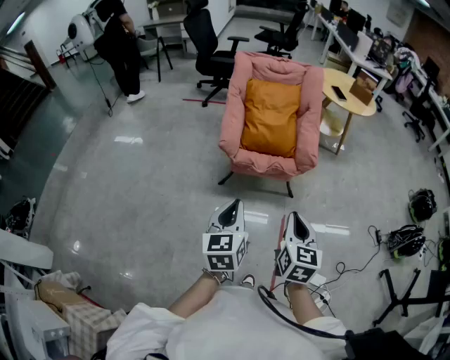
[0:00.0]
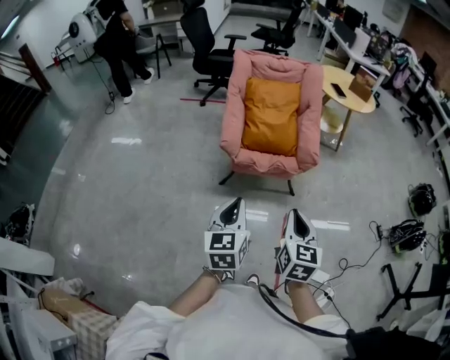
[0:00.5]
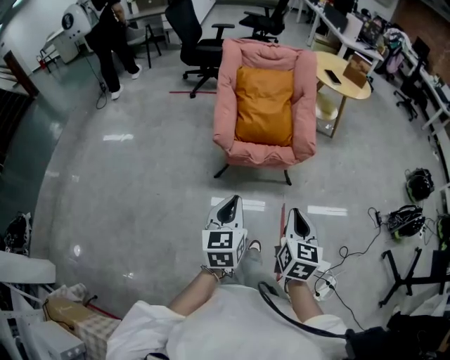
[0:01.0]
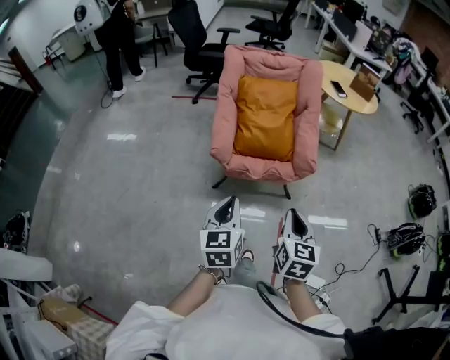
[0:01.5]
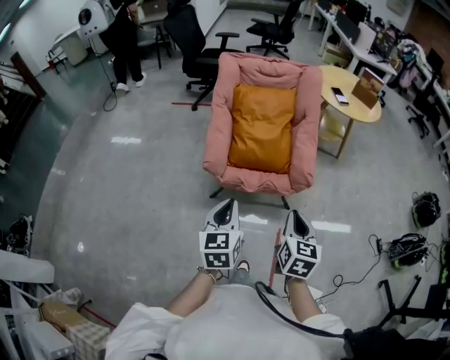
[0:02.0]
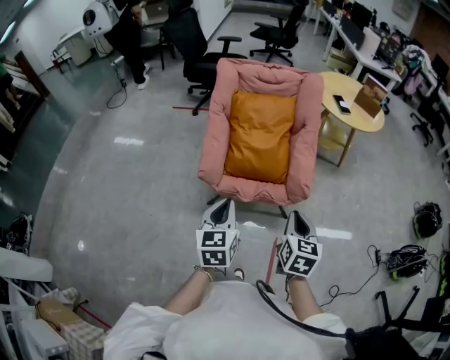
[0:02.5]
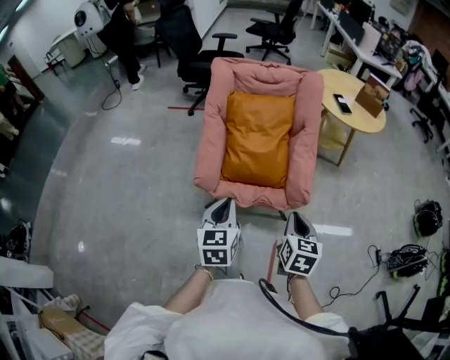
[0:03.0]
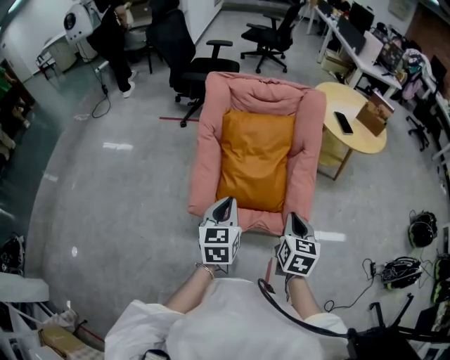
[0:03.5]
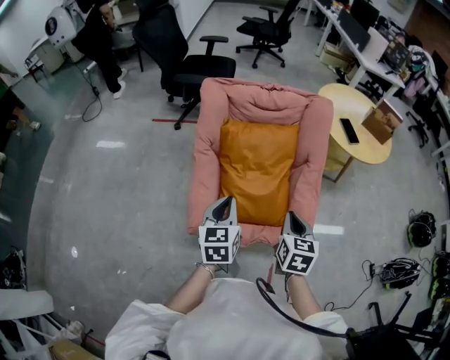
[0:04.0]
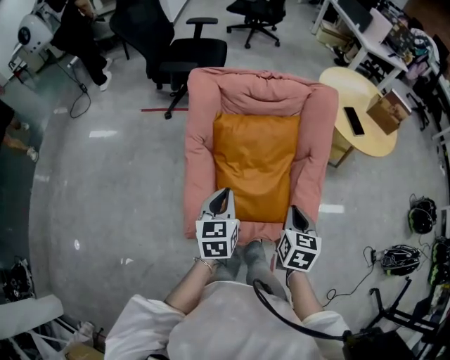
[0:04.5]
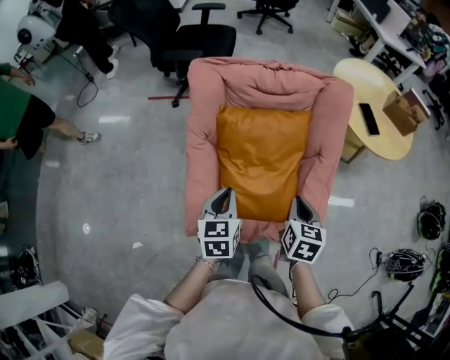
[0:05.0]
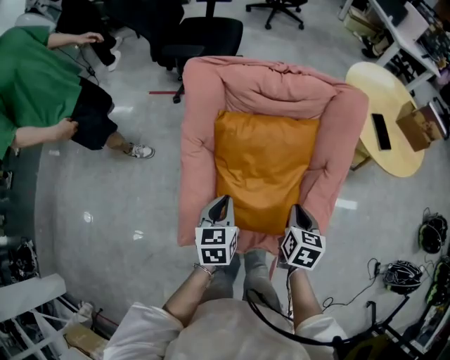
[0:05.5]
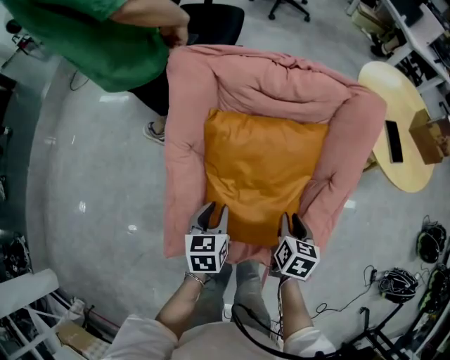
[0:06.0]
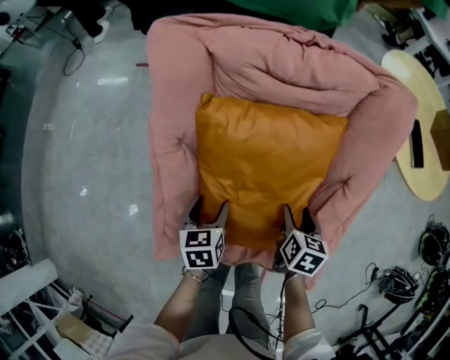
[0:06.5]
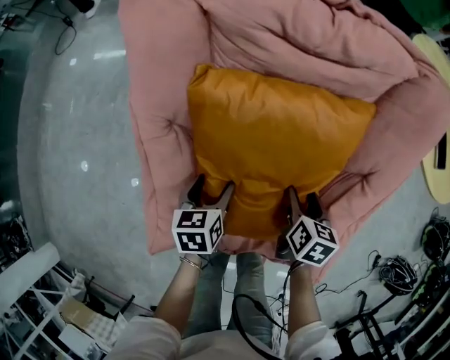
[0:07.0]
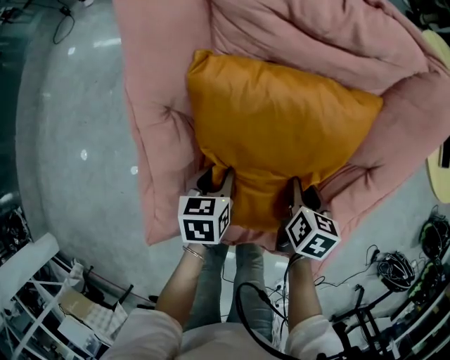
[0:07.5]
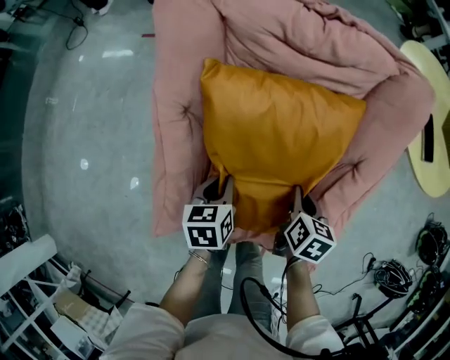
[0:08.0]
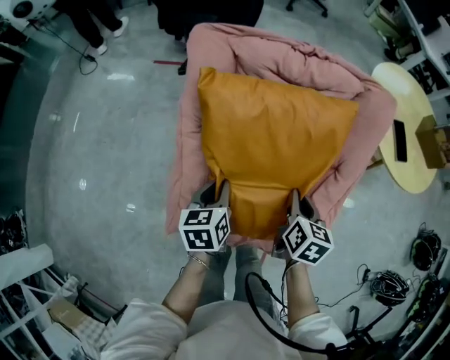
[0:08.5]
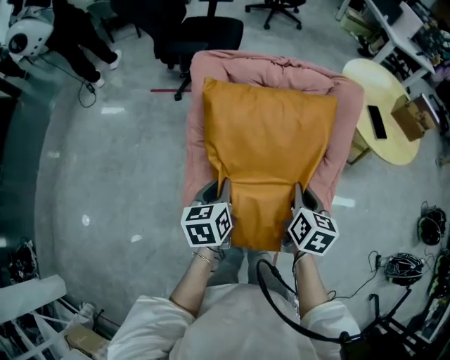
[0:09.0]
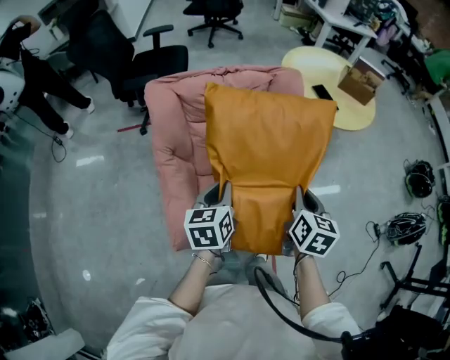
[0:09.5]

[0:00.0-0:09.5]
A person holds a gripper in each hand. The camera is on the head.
0:00.0 to 0:02.0: The grippers both shift forward by roughly 20 cm.
0:02.0 to 0:04.0: The two grippers go approximately 35 cm forward.
0:04.0 to 0:05.5: The grippers both shift forward and downward by approximately 20 cm.
0:05.5 to 0:07.5: The two grippers go some 20 cm downward. The left gripper opens its fingers. The right gripper opens up.
0:07.5 to 0:09.5: The left gripper heads upward, covering roughly 30 cm, and swivels approximately 30 degrees. The right gripper goes approximately 35 cm upward and backward, rotates approximately 30 degrees, and closes.

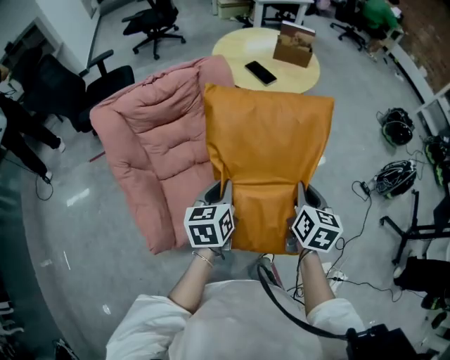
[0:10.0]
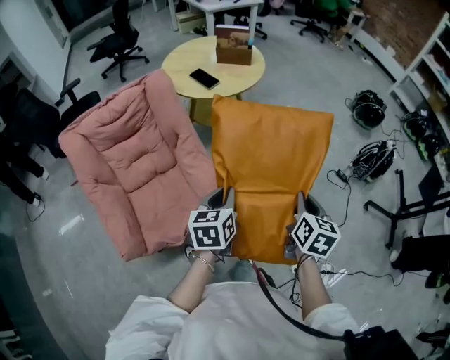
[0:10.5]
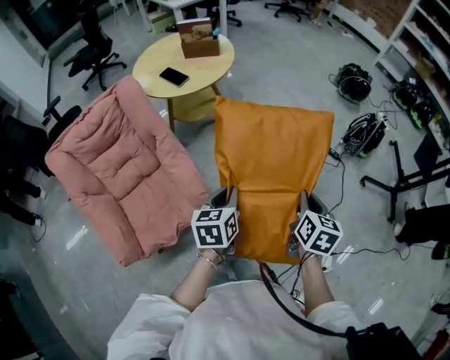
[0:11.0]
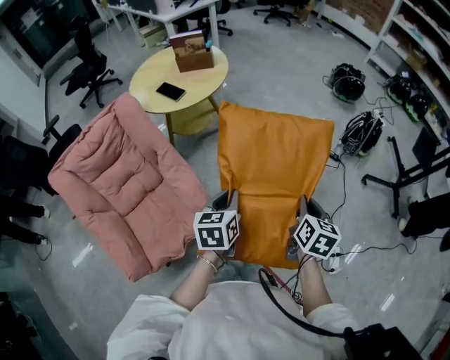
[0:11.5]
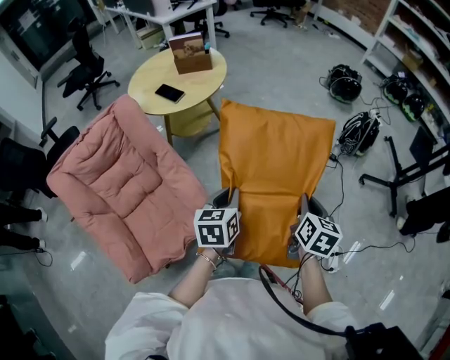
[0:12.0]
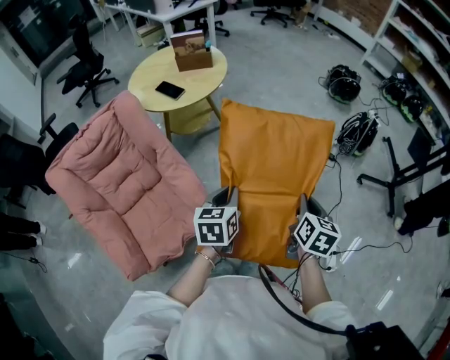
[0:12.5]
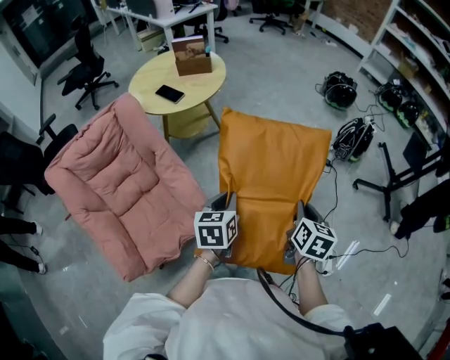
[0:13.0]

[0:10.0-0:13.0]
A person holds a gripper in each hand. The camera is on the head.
0:10.0 to 0:11.5: Both grippers travel together to the right, about 30 cm. The right gripper swivels approximately 20 degrees, while the left gripper changes its angle by some 20 degrees.
0:11.5 to 0:13.0: The grippers move only a little.

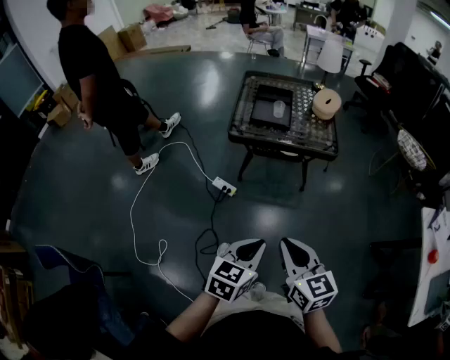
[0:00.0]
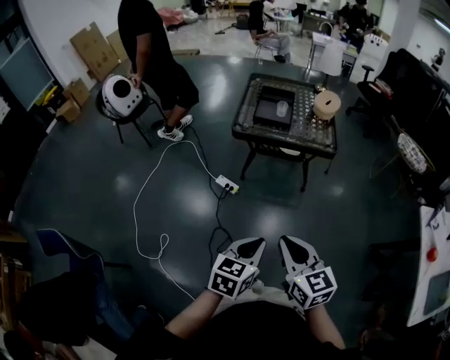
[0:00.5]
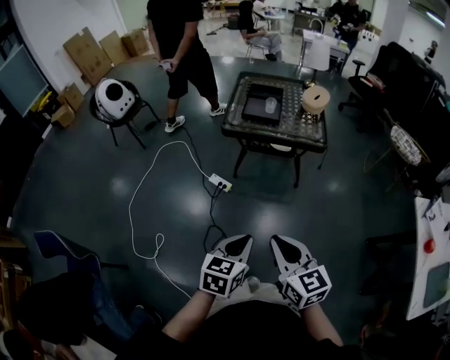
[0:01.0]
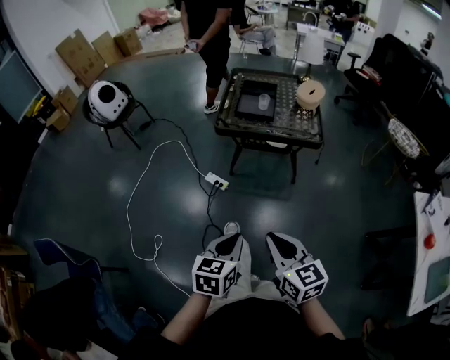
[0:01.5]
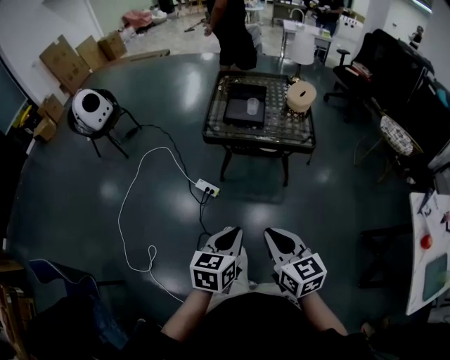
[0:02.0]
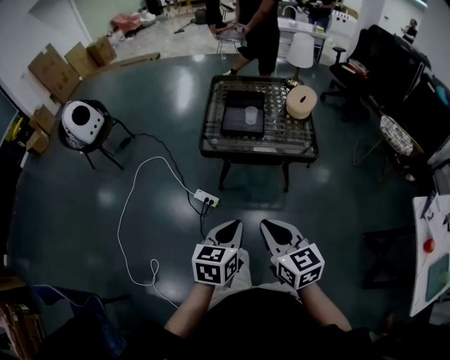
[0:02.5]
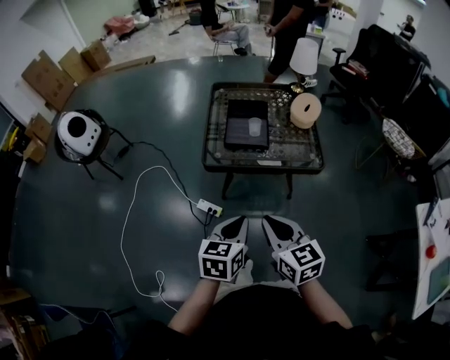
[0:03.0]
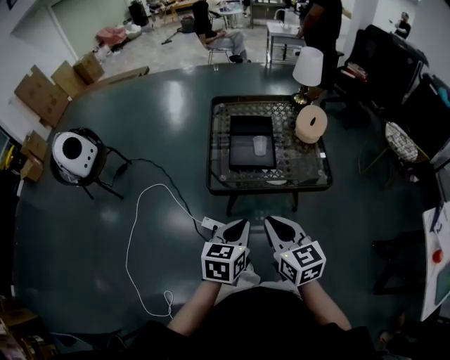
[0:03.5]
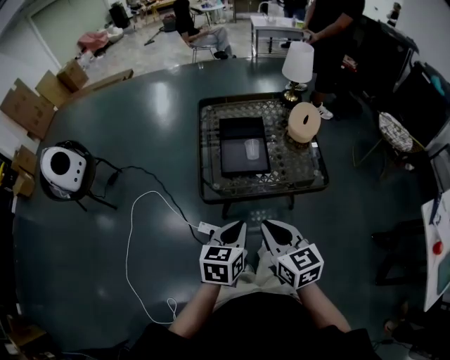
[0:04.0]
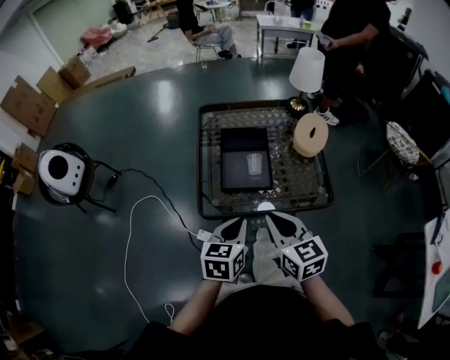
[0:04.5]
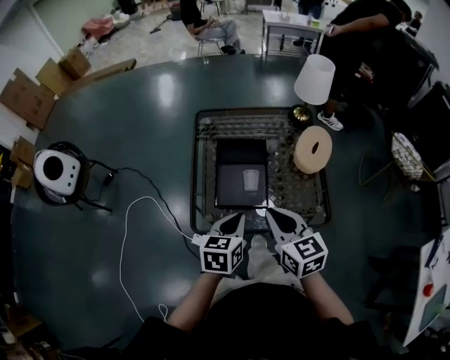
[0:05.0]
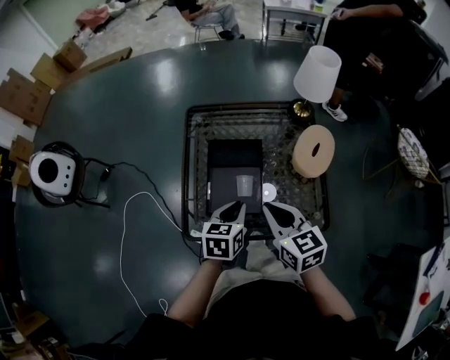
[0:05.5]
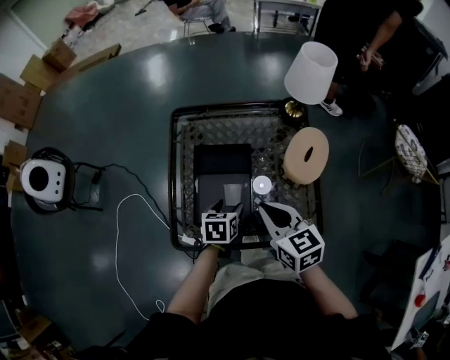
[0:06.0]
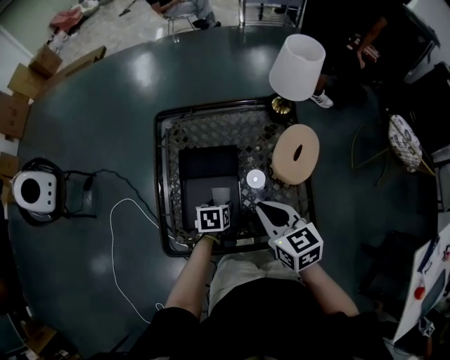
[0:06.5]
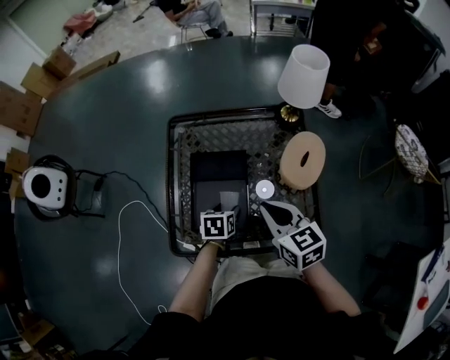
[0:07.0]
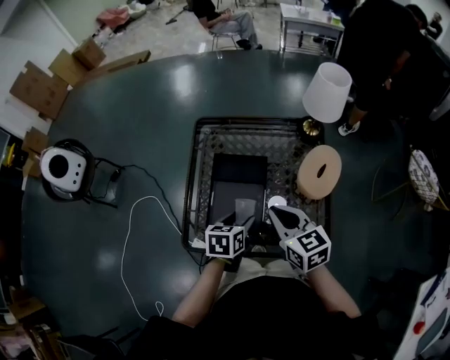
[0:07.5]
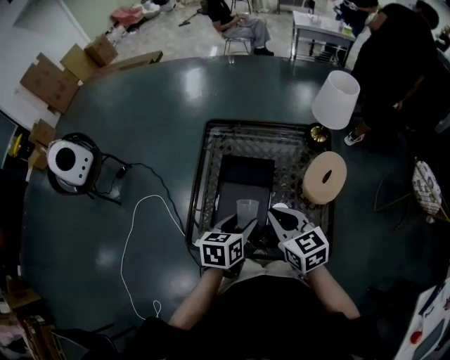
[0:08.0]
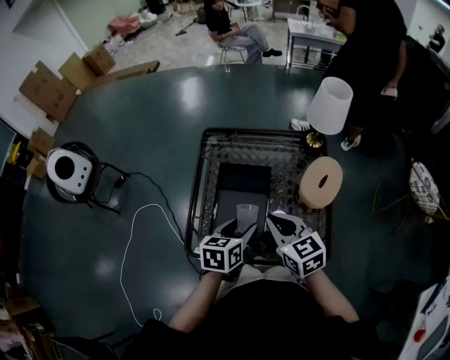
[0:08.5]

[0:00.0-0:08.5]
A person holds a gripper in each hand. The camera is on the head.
0:00.0 to 0:02.0: The right gripper goes backward and returns, some 10 cm each way; the left gripper goes backward and returns, approximately 5 cm each way.
0:02.0 to 0:04.0: Both grippers move forward, about 35 cm.
0:04.0 to 0:06.5: The left gripper moves forward and downward, some 40 cm, rotates roughly 30 degrees, and opens up. Meanwhile the right gripper heads forward and to the right, covering roughly 35 cm.
0:06.5 to 0:08.5: The right gripper ends up approximately 5 cm from where it was. The left gripper heads upward, covering roughly 15 cm, and turns by roughly 20 degrees.

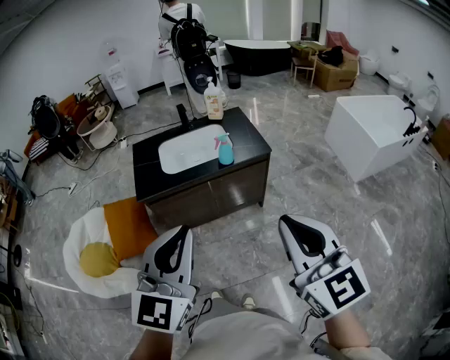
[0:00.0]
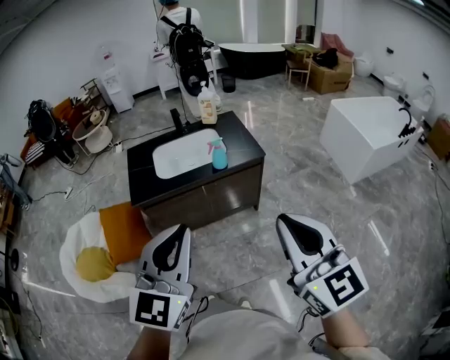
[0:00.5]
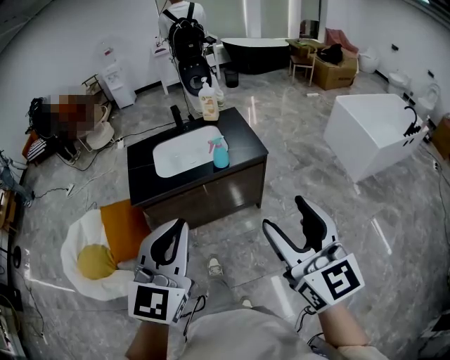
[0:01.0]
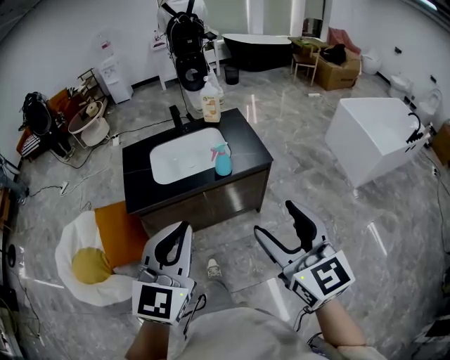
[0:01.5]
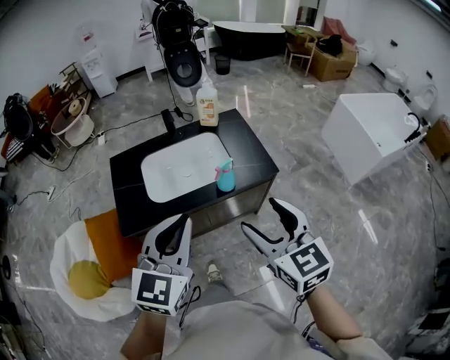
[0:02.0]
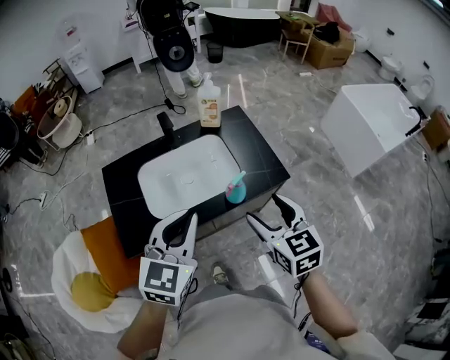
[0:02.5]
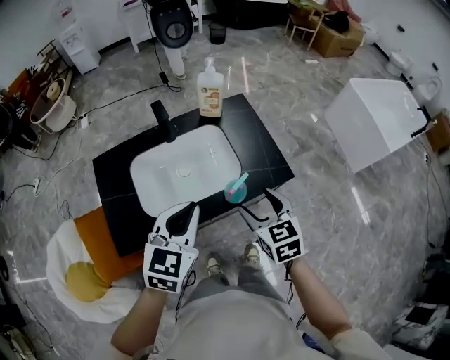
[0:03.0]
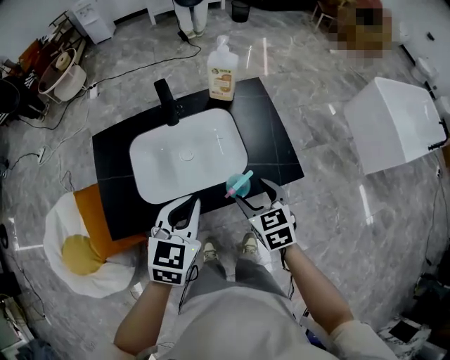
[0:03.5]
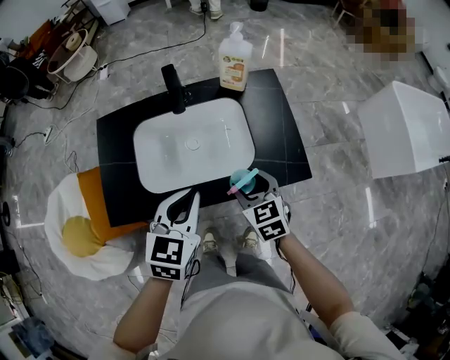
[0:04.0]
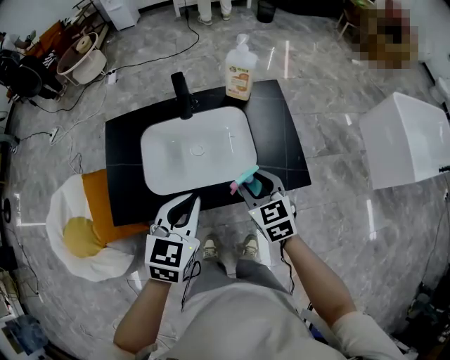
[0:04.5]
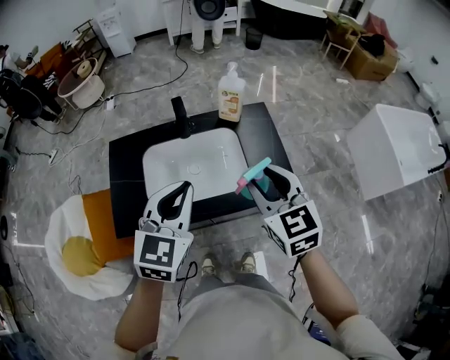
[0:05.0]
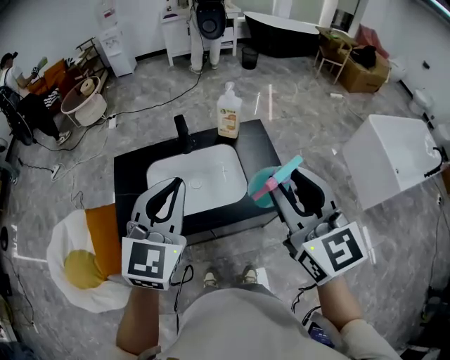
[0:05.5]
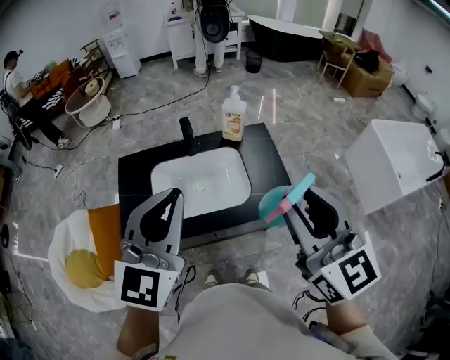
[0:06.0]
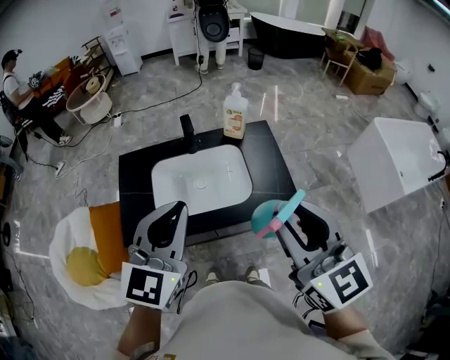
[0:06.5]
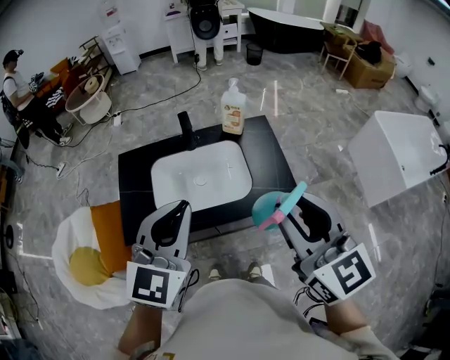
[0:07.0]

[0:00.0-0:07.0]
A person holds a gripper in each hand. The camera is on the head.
0:00.0 to 0:02.0: The two grippers go approximately 30 cm forward. The right gripper opens its fingers.
0:02.0 to 0:03.5: The right gripper is displaced downward and forward by roughly 35 cm, and changes its angle by approximately 20 degrees; the left gripper moves forward and downward, about 30 cm, and rotates some 20 degrees.
0:03.5 to 0:05.0: The right gripper shifts some 20 cm upward, turns by approximately 20 degrees, and closes its fingers, while the left gripper shifts approximately 10 cm upward.
0:05.0 to 0:07.0: The left gripper is displaced upward and backward by roughly 10 cm; the right gripper travels upward and backward by about 15 cm.
